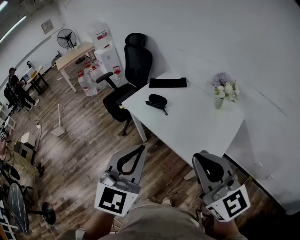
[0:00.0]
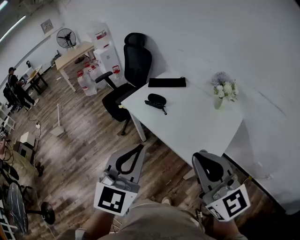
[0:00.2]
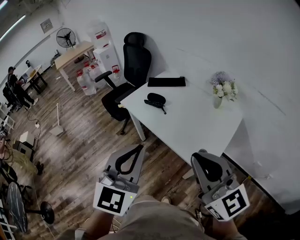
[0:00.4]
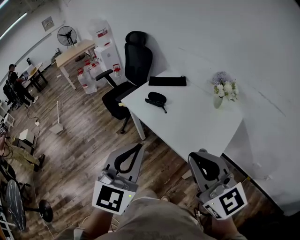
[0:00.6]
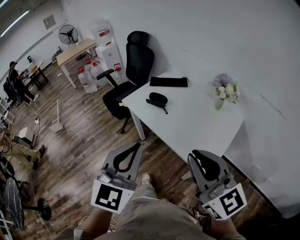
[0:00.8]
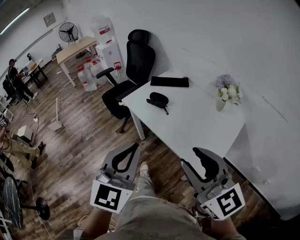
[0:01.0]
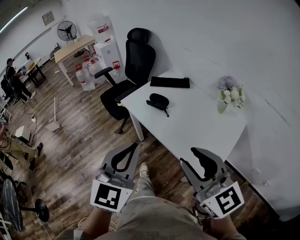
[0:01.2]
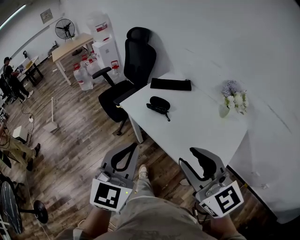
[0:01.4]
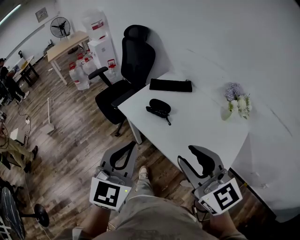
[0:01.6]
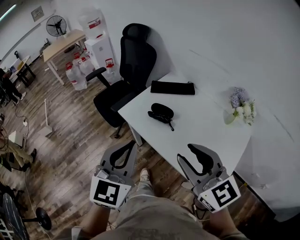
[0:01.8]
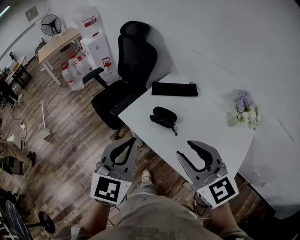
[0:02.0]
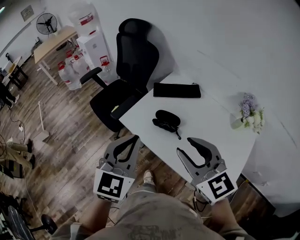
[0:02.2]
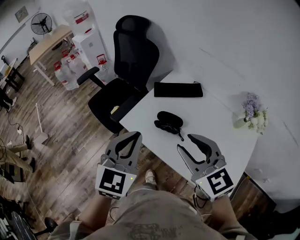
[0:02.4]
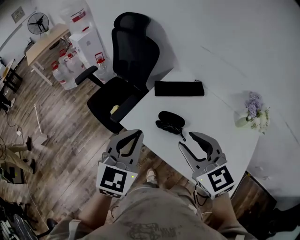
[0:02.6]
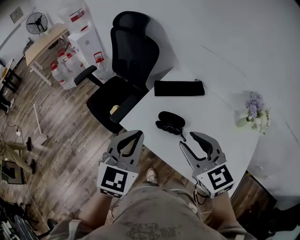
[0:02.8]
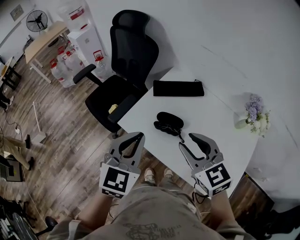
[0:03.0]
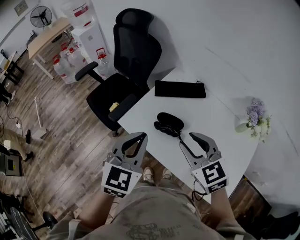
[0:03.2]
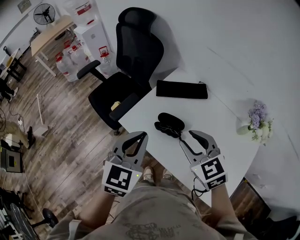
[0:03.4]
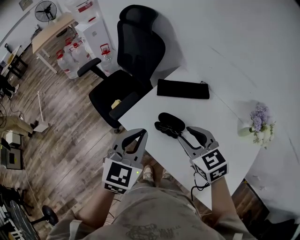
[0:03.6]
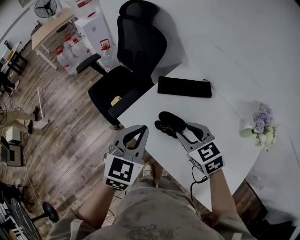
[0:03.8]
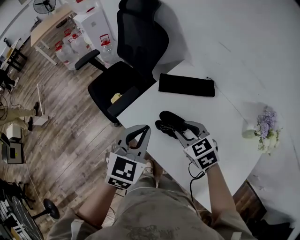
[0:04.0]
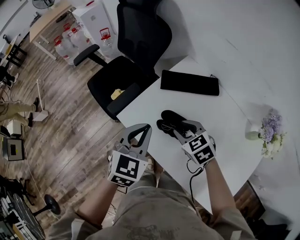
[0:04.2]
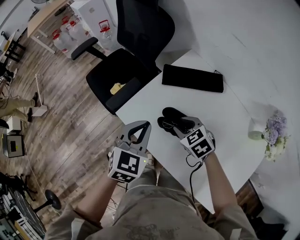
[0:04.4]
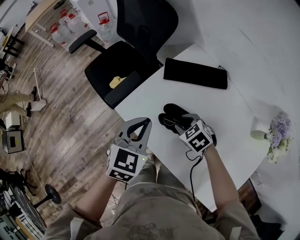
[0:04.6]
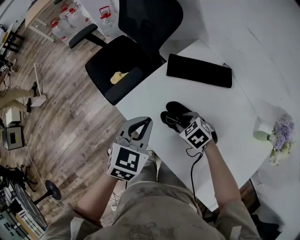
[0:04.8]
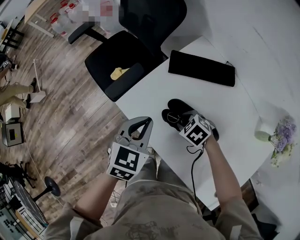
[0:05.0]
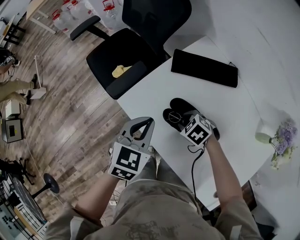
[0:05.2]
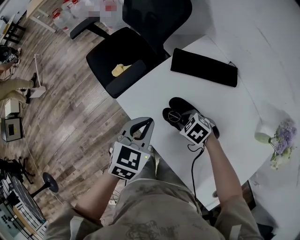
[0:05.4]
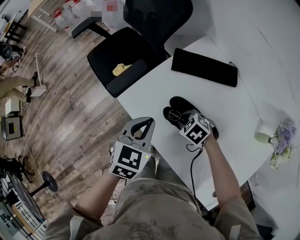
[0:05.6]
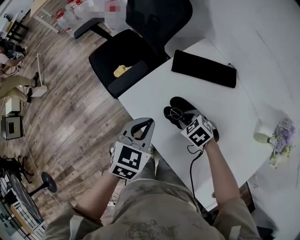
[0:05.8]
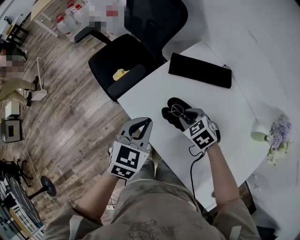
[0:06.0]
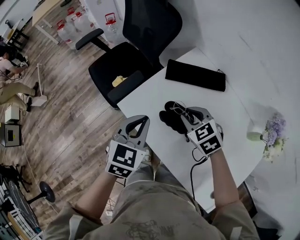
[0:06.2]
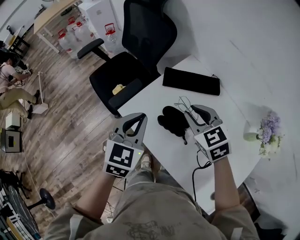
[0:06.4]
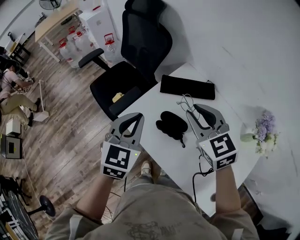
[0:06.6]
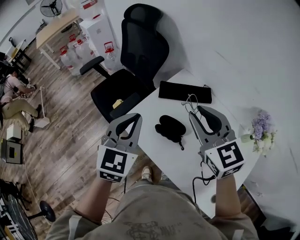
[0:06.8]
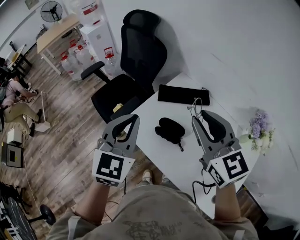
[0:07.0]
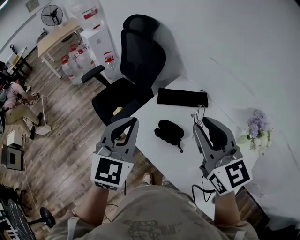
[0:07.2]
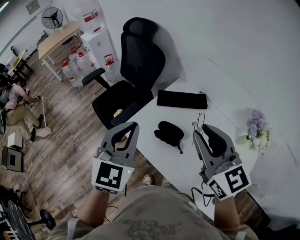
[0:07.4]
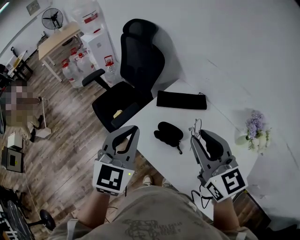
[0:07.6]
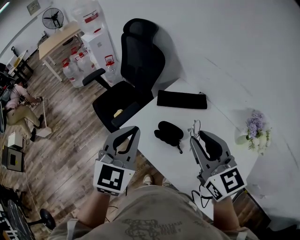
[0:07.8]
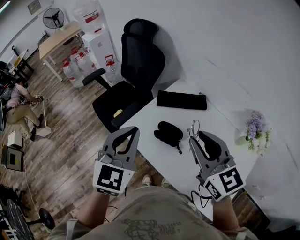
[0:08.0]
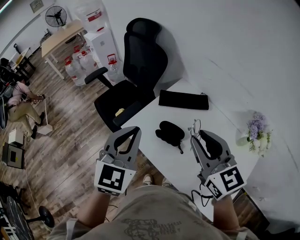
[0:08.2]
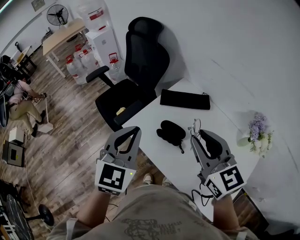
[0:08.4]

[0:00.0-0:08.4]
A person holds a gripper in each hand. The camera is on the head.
0.0 to 1.4 s: Both grippers move forward and to the left, about 10 cm. The right gripper opens its fingers.
1.4 to 2.8 s: The grippers both shift forward by roughly 30 cm. The right gripper swivels roughly 20 degrees.
2.8 to 4.2 s: The right gripper shifts about 25 cm downward and forward, and changes its angle by approximately 30 degrees, while the left gripper shifts some 15 cm downward and forward.
4.2 to 5.6 s: The left gripper travels downward by roughly 10 cm. The right gripper heads downward, covering approximately 15 cm, and turns by roughly 30 degrees.
5.6 to 7.0 s: The right gripper travels upward by about 40 cm, and tilts its fingers about 60 degrees upward. The left gripper moves upward, some 25 cm, and swivels some 30 degrees.
7.0 to 8.4 s: The right gripper travels backward by roughly 5 cm.

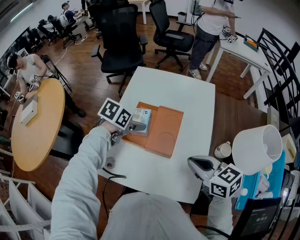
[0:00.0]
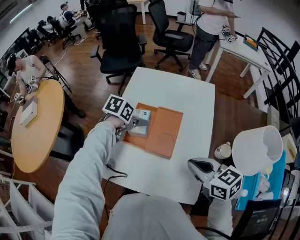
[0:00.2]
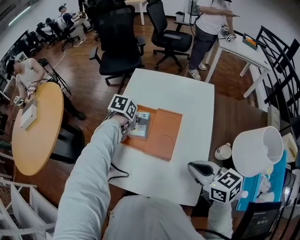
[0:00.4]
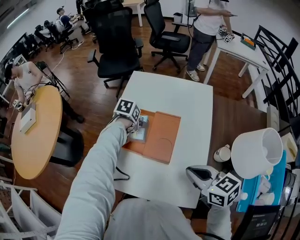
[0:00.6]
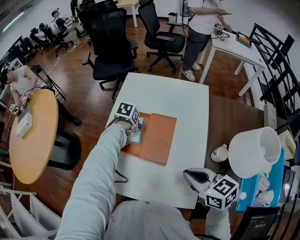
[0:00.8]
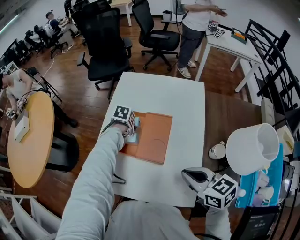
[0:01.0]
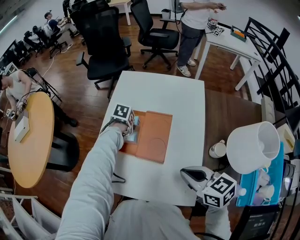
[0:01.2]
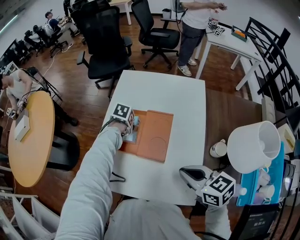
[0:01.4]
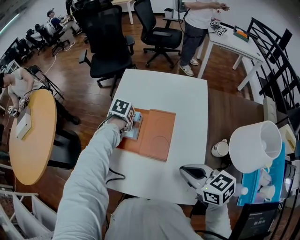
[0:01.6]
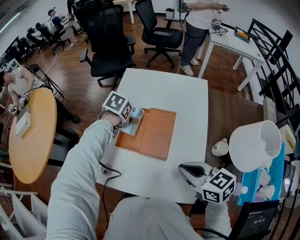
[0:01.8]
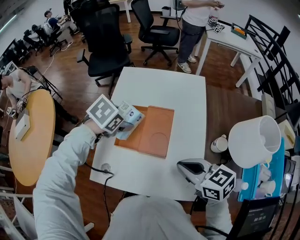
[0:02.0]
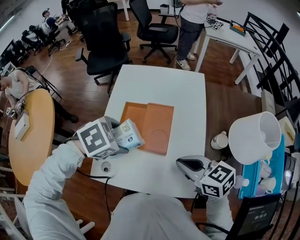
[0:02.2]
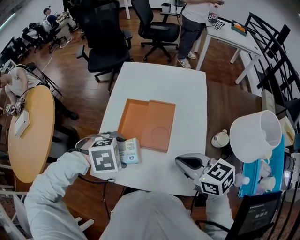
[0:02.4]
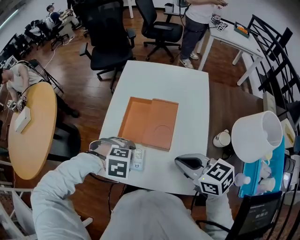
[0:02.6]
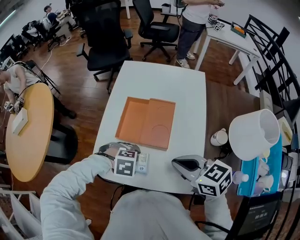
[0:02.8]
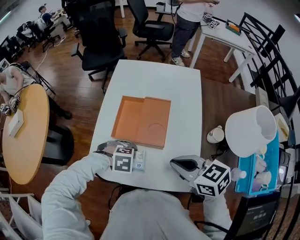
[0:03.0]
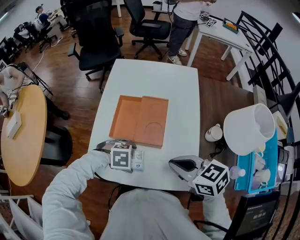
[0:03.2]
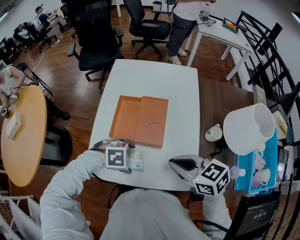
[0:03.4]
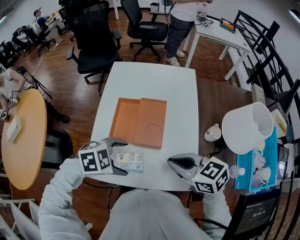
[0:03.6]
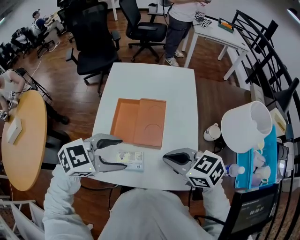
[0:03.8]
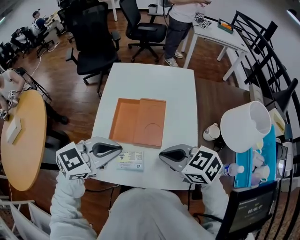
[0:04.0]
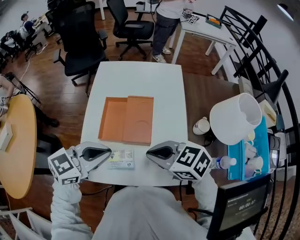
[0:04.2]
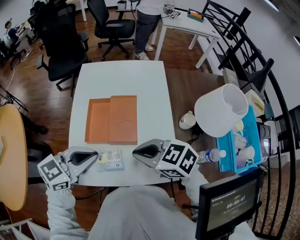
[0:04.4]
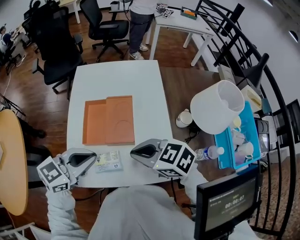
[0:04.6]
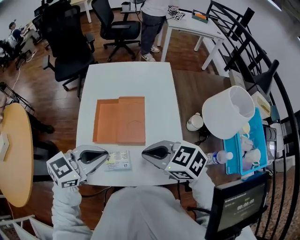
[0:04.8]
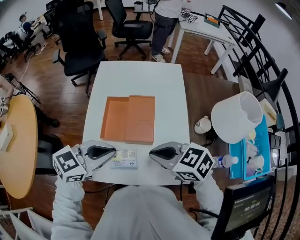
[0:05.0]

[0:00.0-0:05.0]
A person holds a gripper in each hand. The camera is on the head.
0.0 to 1.6 s: The left gripper is displaced downward by roughly 10 cm.
1.6 to 3.4 s: The left gripper travels upward and back again, approximately 15 cm each way, and twists approximately 70 degrees clockwise, seen from behind.
3.4 to 5.0 s: The left gripper moves upward, some 20 cm, tips its fingers upward by roughly 40 degrees, and closes its fingers.

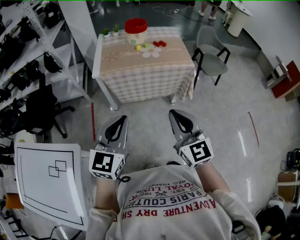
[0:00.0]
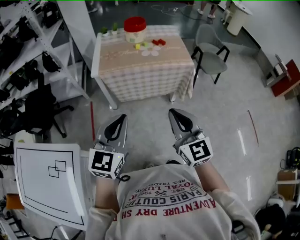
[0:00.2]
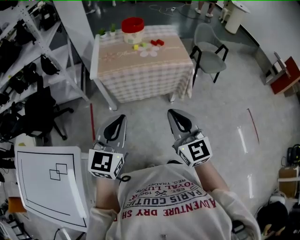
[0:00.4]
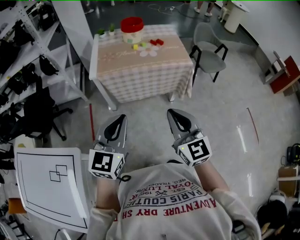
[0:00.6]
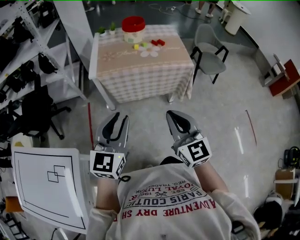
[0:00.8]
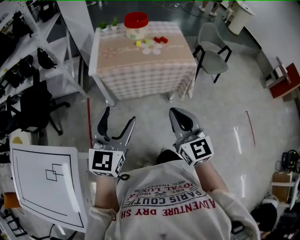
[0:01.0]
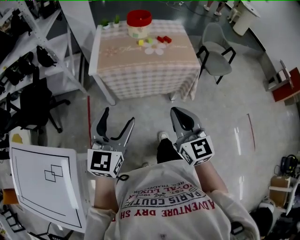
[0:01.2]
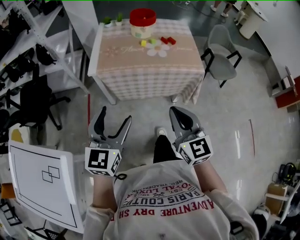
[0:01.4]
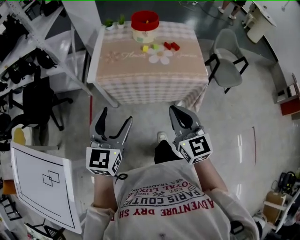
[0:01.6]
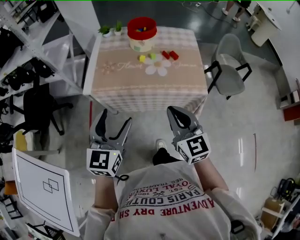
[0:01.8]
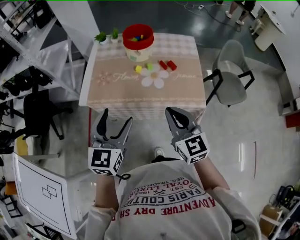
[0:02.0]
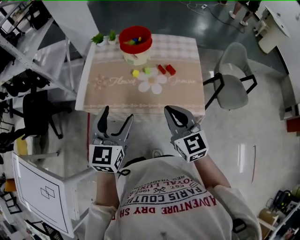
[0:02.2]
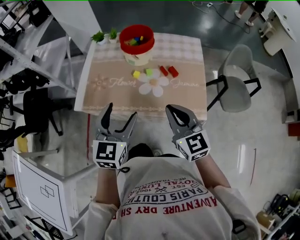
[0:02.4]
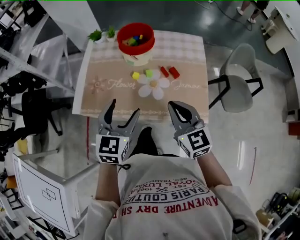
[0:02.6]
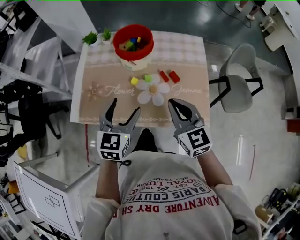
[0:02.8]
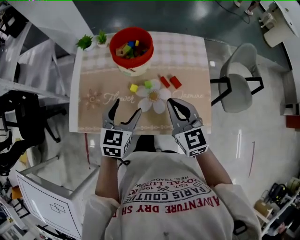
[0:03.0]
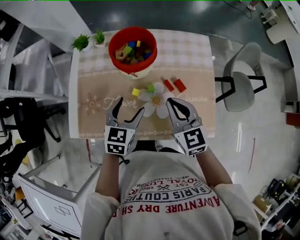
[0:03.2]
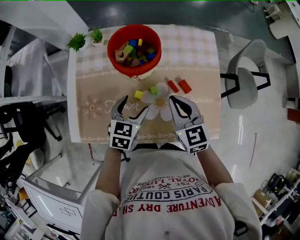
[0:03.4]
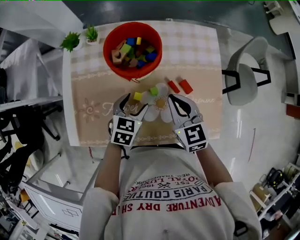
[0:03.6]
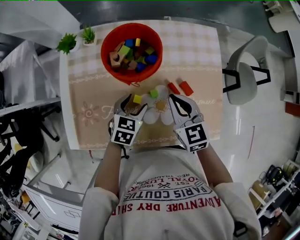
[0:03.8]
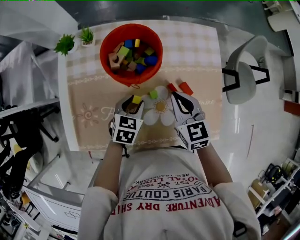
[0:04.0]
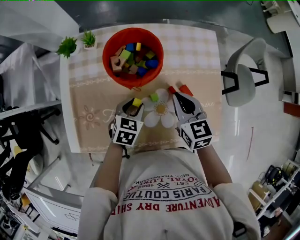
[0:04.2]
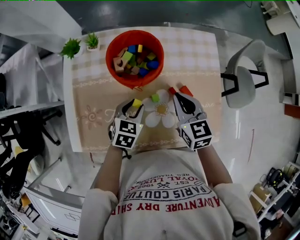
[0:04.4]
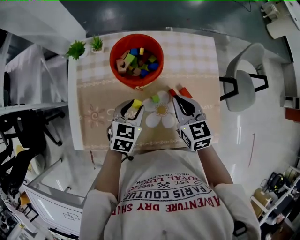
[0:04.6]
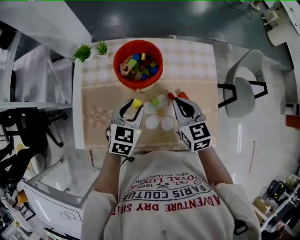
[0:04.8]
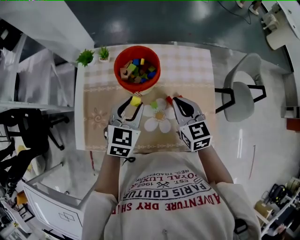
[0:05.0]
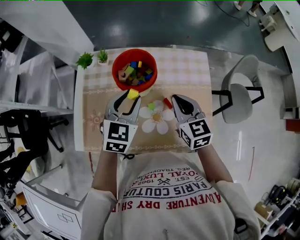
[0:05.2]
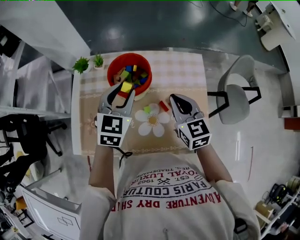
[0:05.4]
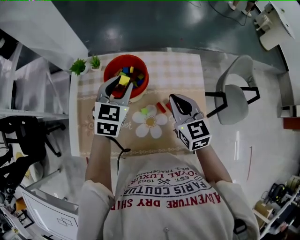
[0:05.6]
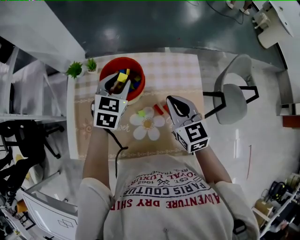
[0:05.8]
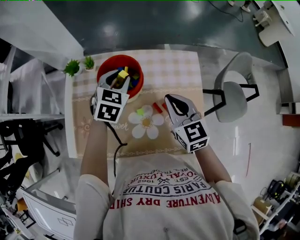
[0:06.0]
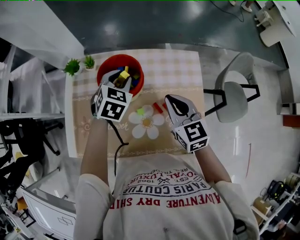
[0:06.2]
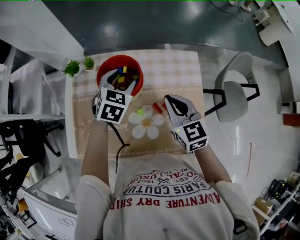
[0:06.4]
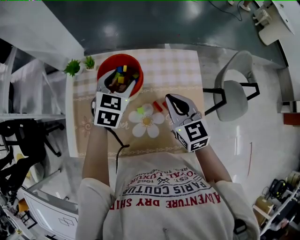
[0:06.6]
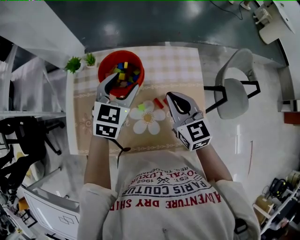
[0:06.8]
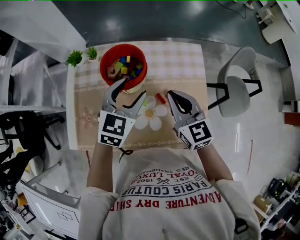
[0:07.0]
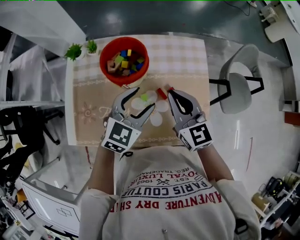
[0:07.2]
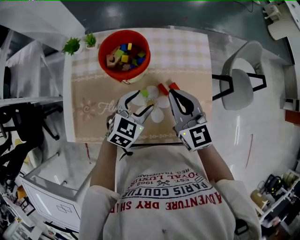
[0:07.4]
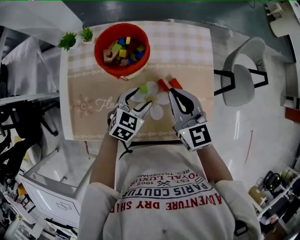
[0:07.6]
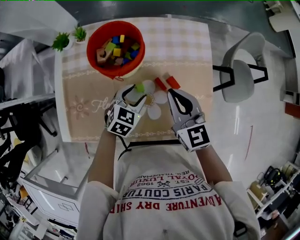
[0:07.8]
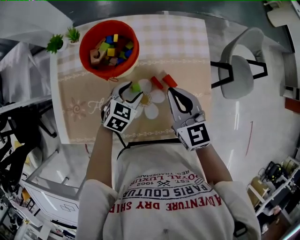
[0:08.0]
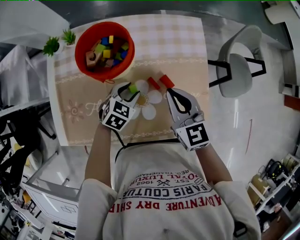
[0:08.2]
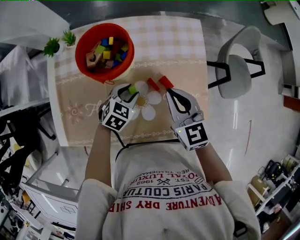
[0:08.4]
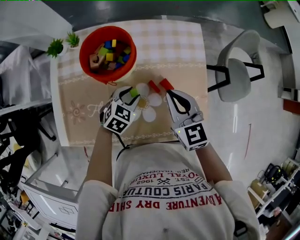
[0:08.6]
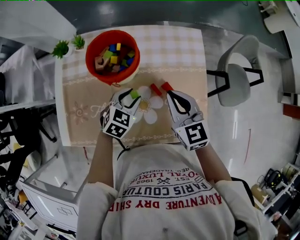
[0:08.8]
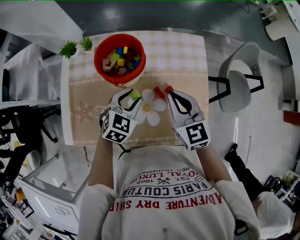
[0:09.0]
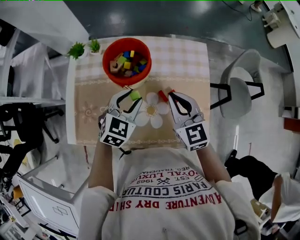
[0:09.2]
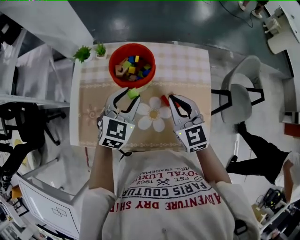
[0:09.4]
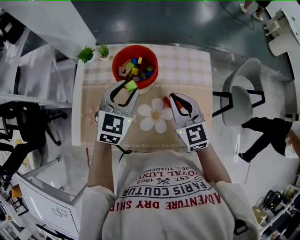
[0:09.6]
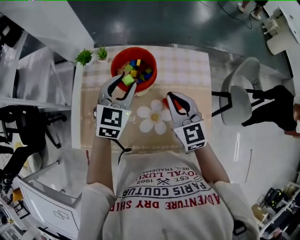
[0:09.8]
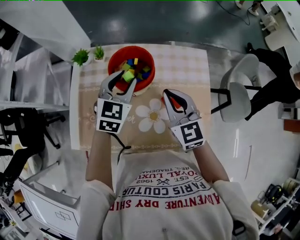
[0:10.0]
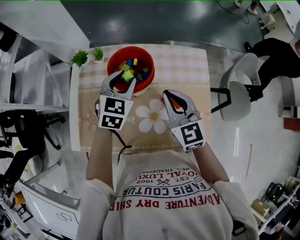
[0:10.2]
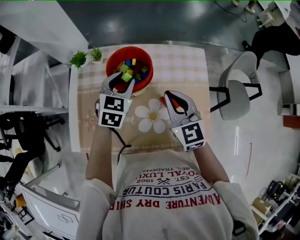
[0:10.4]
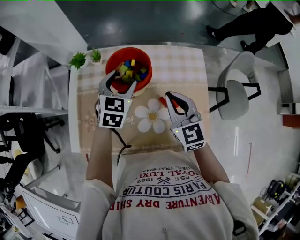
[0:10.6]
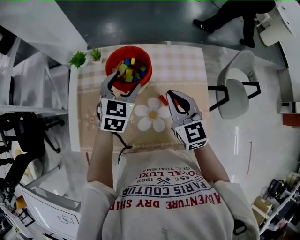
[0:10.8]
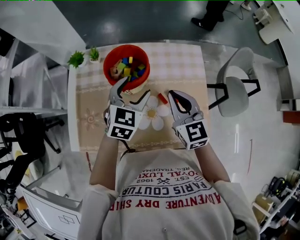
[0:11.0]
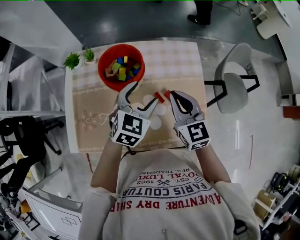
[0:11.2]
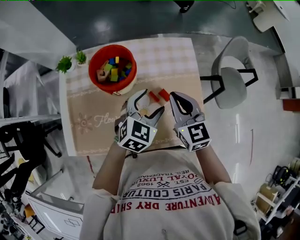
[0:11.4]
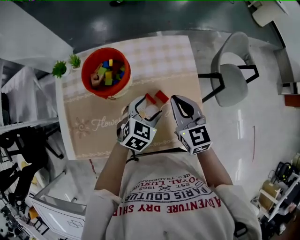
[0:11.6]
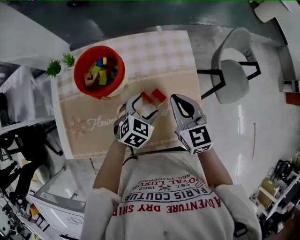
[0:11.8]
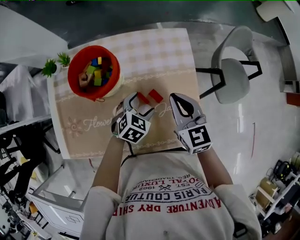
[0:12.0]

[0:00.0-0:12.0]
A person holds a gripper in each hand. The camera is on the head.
0.0 to 1.6 s: The two grippers go roughly 20 cm forward. The left gripper opens up.
1.6 to 3.0 s: The pair of grippers is taken forward, roughly 40 cm.
3.0 to 4.4 s: The right gripper goes about 15 cm forward and downward. Meanwhile the left gripper heads downward and forward, covering some 15 cm, rotates roughly 20 degrees, and closes its fingers.
4.4 to 6.0 s: The left gripper is displaced upward and forward by about 25 cm, while the right gripper heads upward, covering some 10 cm.
6.0 to 7.6 s: The right gripper goes some 5 cm backward. Meanwhile the left gripper moves backward and downward, roughly 20 cm, and opens.
7.6 to 9.0 s: The left gripper moves some 5 cm.
9.0 to 10.4 s: The right gripper changes place by about 5 cm, while the left gripper goes some 15 cm forward, upward and to the left.
10.4 to 12.0 s: The left gripper shifts some 25 cm to the right, downward and backward, swivels roughly 30 degrees, and opens its fingers; the right gripper travels to the right and downward by some 15 cm.
